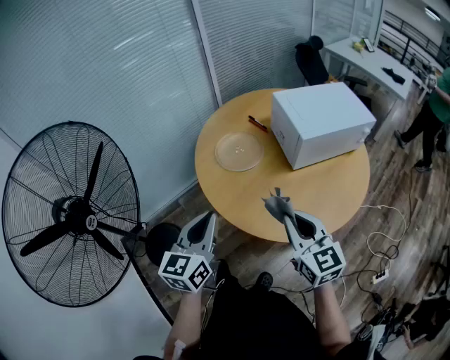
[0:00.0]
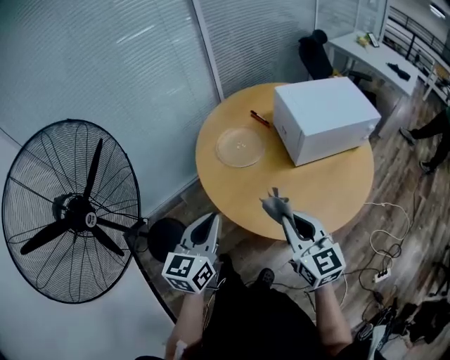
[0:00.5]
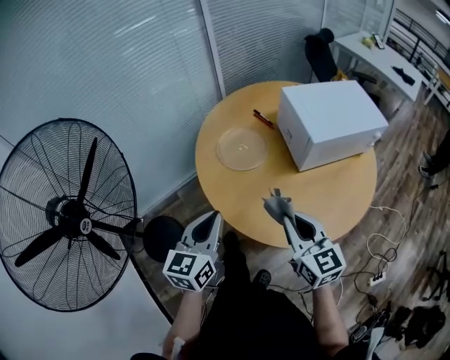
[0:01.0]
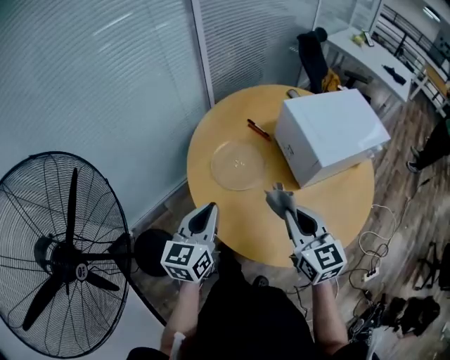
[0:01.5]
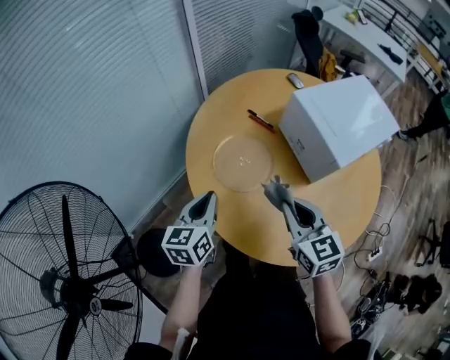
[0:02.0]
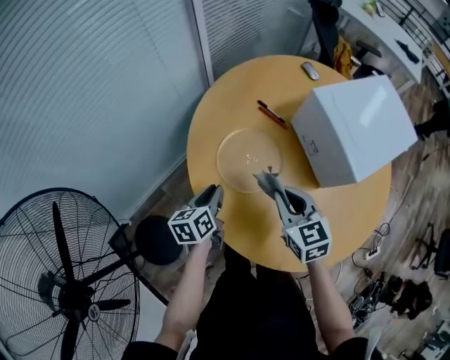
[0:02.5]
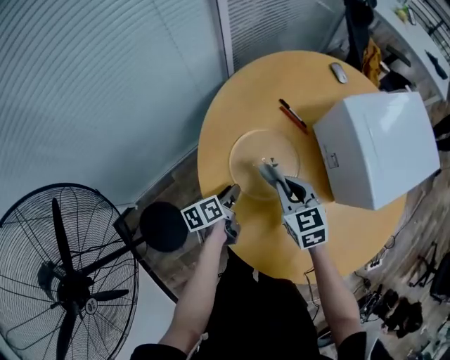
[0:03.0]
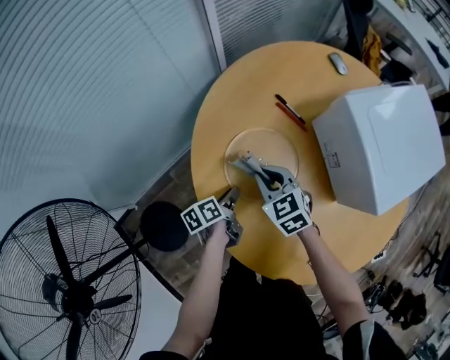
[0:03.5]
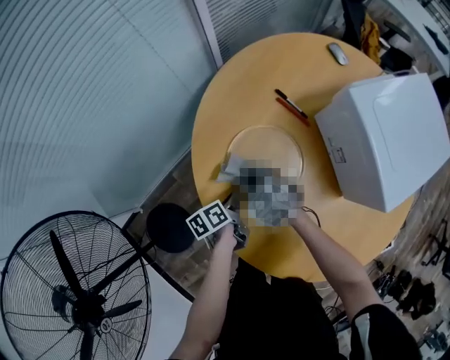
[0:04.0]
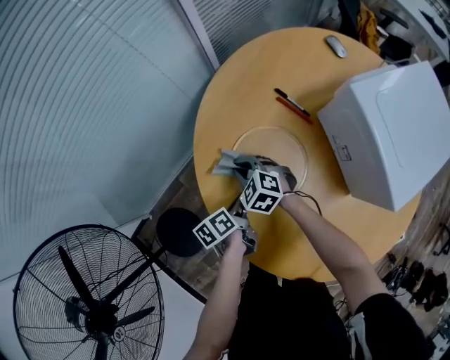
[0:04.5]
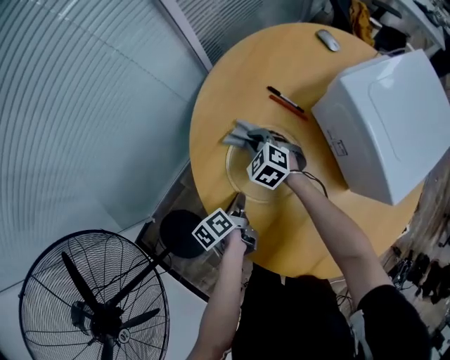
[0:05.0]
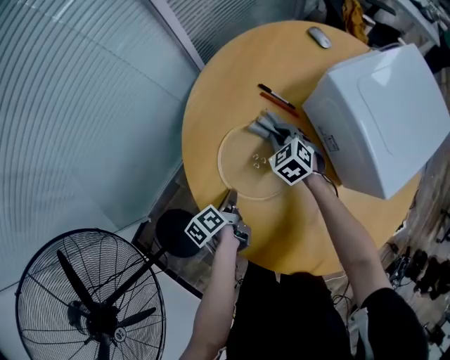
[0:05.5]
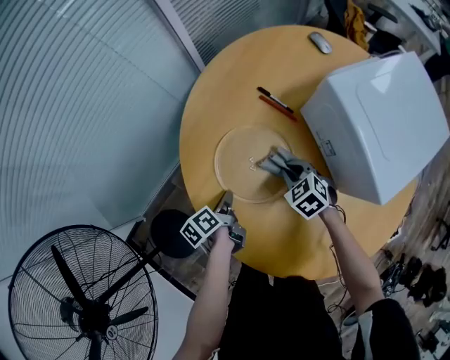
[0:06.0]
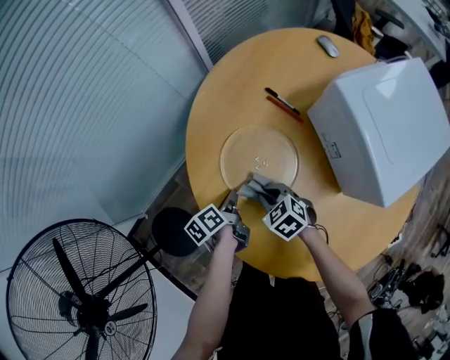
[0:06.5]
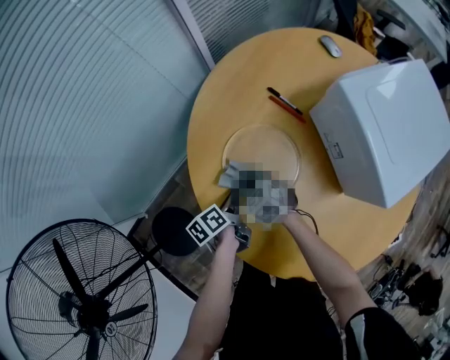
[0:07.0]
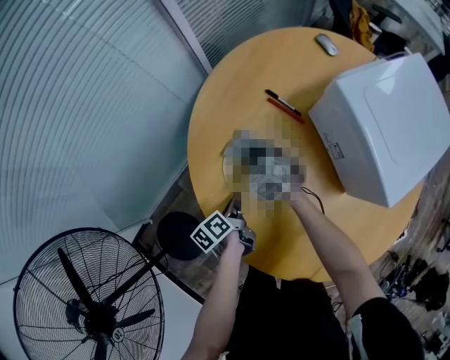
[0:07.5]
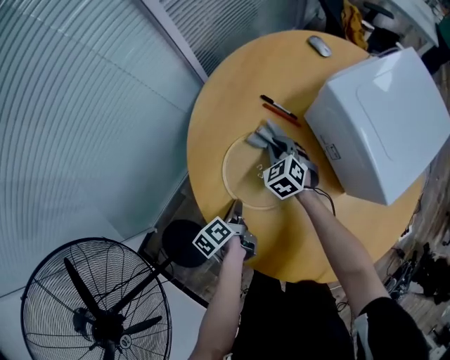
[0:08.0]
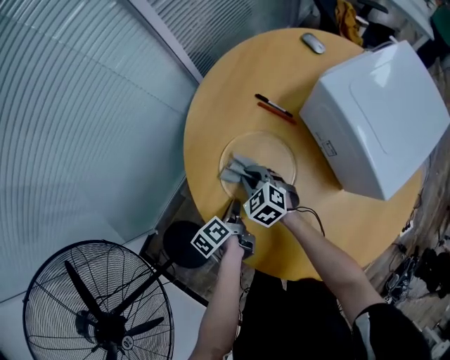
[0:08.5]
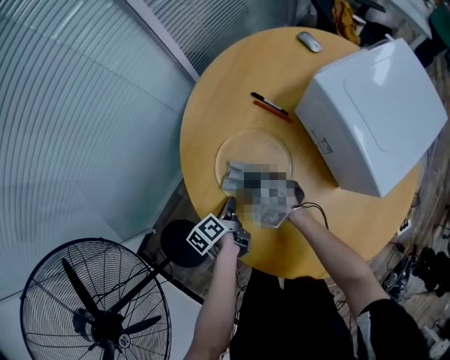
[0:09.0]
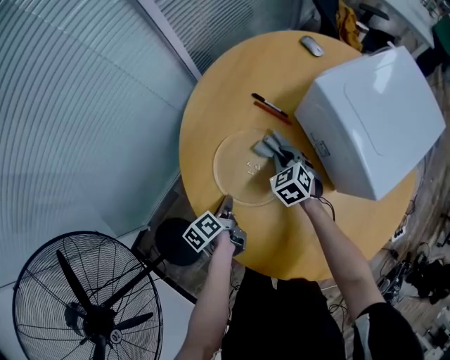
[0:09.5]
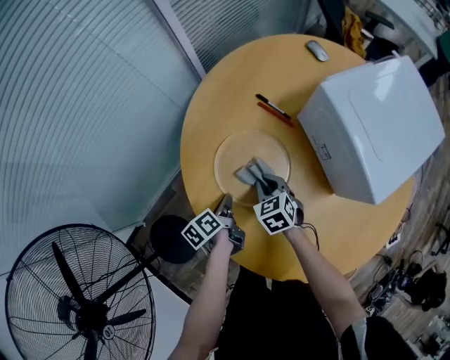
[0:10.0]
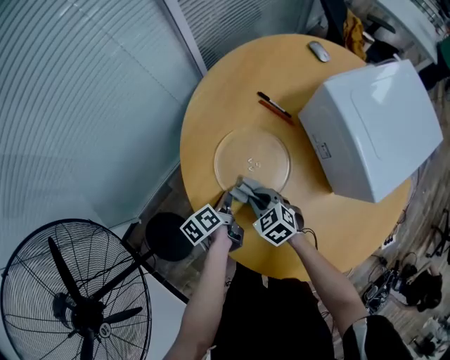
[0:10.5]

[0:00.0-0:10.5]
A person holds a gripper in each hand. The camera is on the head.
0:00.0 to 0:02.0: The right gripper moves forward, approximately 25 cm; the left gripper is displaced forward and downward by approximately 30 cm.
0:02.0 to 0:04.0: The right gripper is displaced downward, forward and to the left by some 35 cm, and swivels about 50 degrees; the left gripper shifts roughly 25 cm downward, and rotates around the line of its fingers by about 50 degrees, counterclockwise from behind.
0:04.0 to 0:06.5: The right gripper travels to the right and backward by some 10 cm.
0:06.5 to 0:08.5: The right gripper goes about 10 cm forward.
0:08.5 to 0:10.5: The right gripper shifts about 10 cm backward, and reaches about 15 cm to the right, then returns.

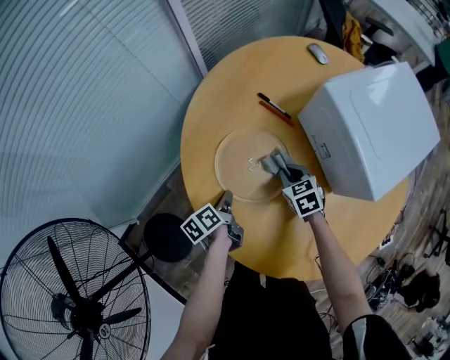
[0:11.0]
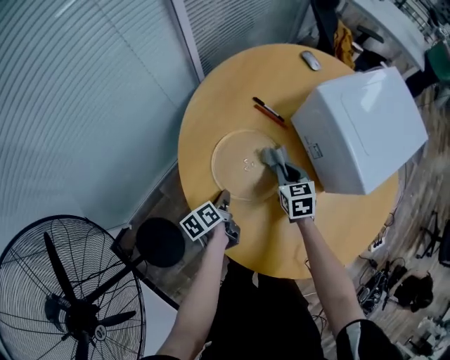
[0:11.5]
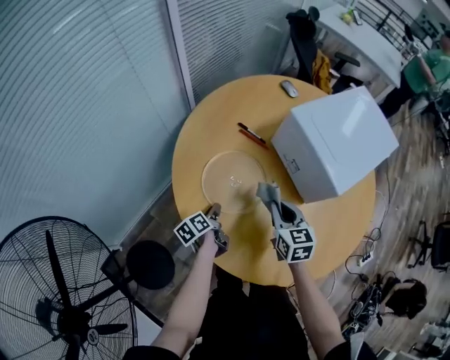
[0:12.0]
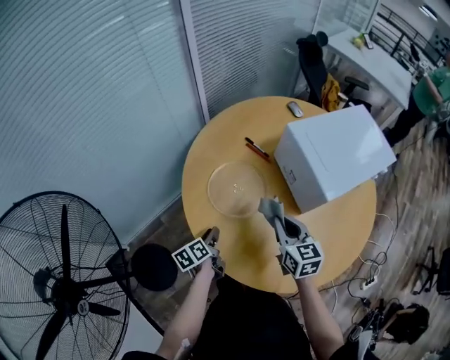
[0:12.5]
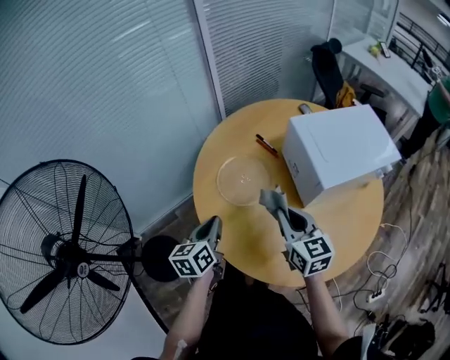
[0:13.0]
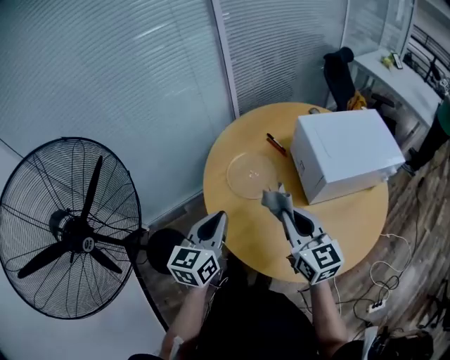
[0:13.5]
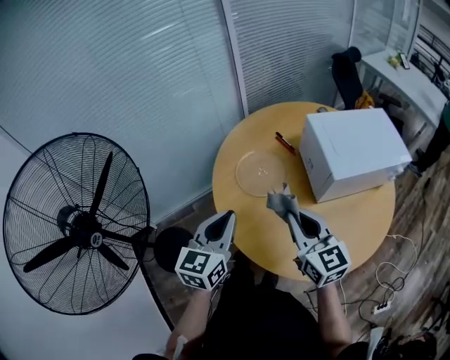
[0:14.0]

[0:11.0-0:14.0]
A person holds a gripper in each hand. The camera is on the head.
0:11.0 to 0:12.5: The left gripper moves backward and upward, roughly 10 cm. Meanwhile the right gripper heads upward and backward, covering roughly 25 cm, and changes its angle by some 30 degrees.
0:12.5 to 0:14.0: The left gripper travels upward and backward by approximately 30 cm, twists about 50 degrees clockwise, seen from behind, and closes up. Meanwhile the right gripper moves upward and backward, some 20 cm, and turns by some 30 degrees.

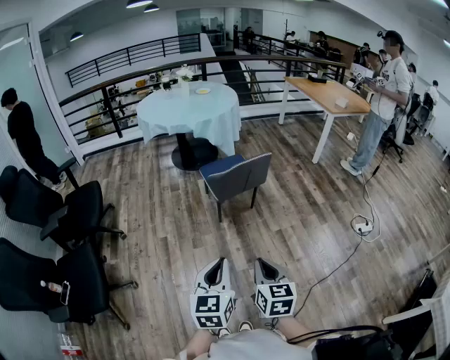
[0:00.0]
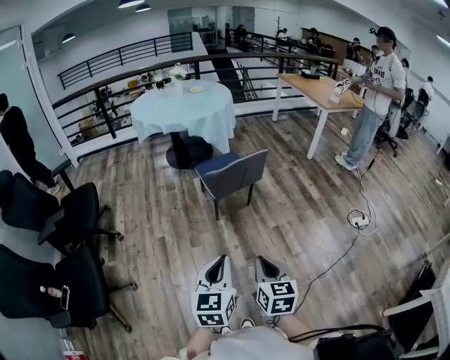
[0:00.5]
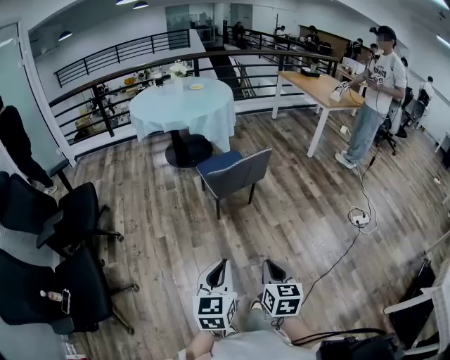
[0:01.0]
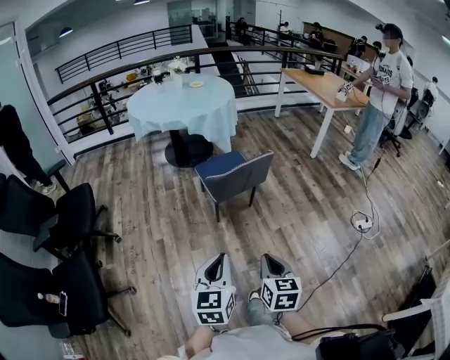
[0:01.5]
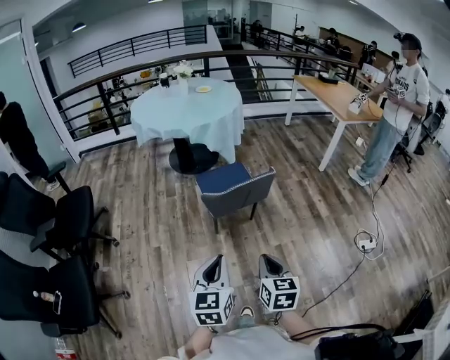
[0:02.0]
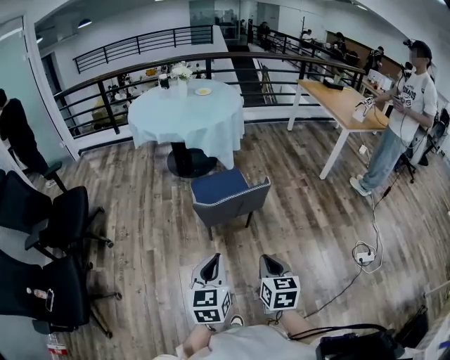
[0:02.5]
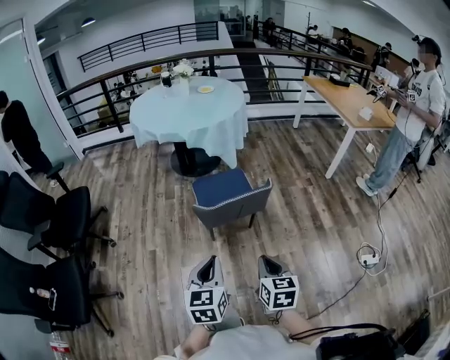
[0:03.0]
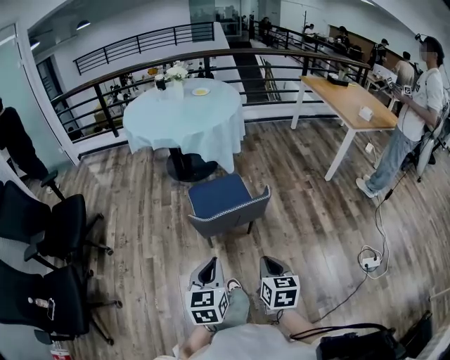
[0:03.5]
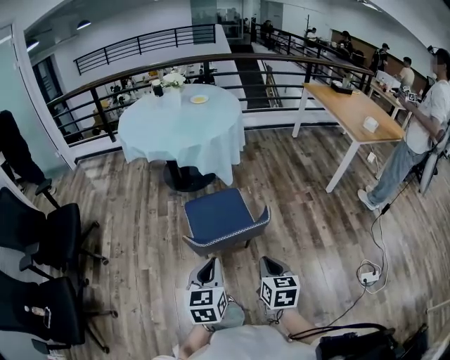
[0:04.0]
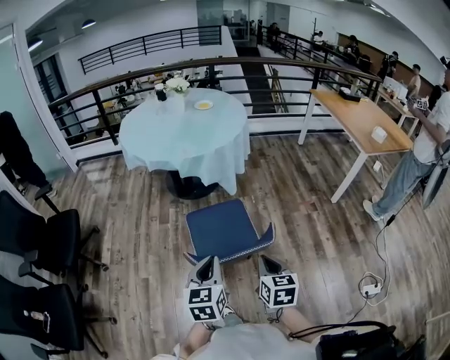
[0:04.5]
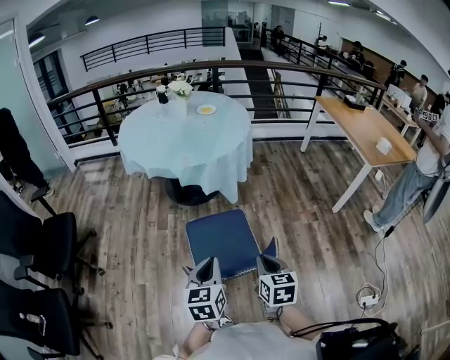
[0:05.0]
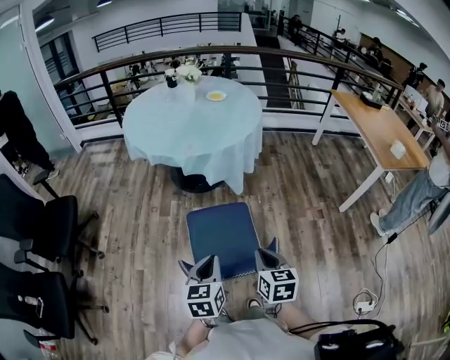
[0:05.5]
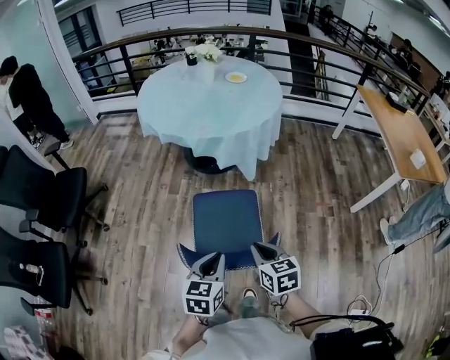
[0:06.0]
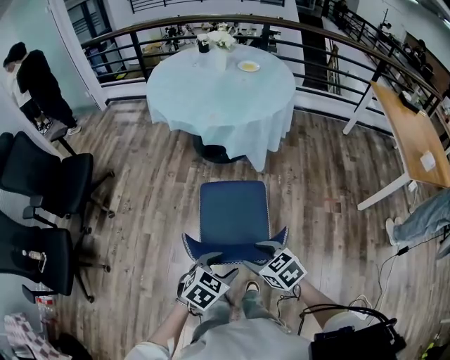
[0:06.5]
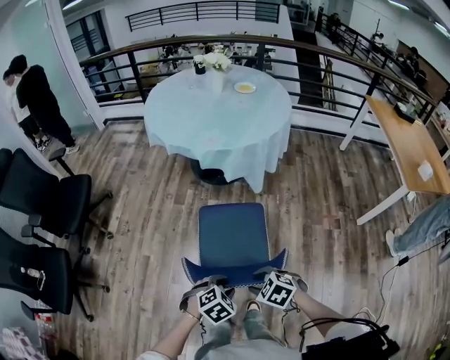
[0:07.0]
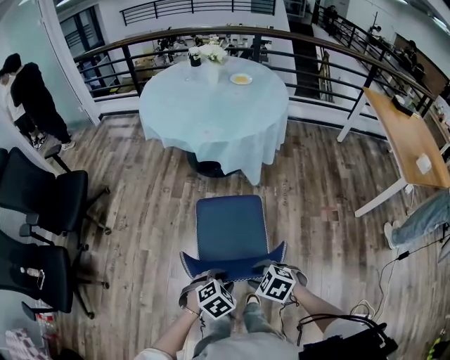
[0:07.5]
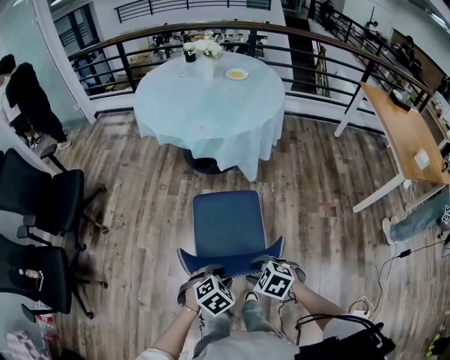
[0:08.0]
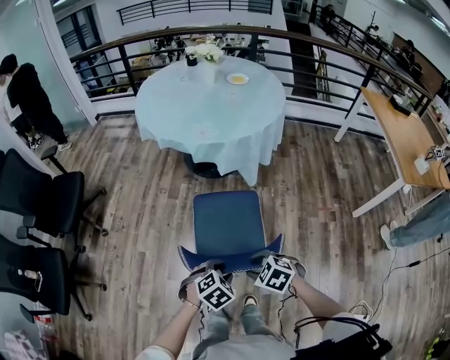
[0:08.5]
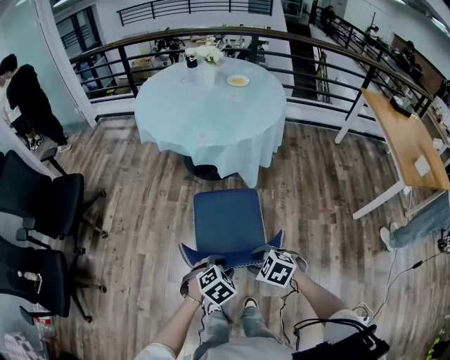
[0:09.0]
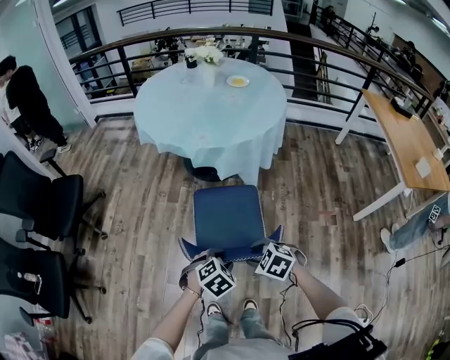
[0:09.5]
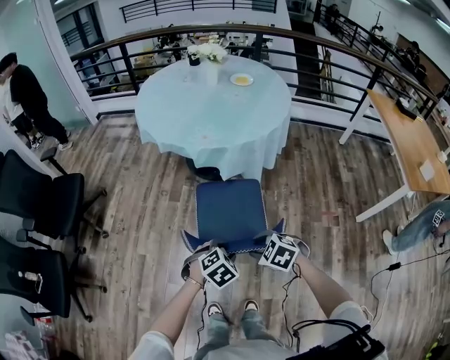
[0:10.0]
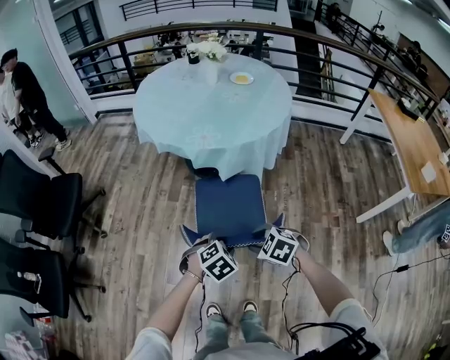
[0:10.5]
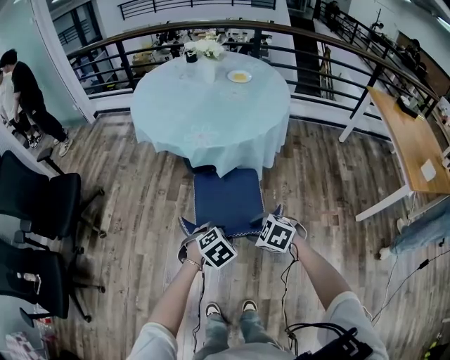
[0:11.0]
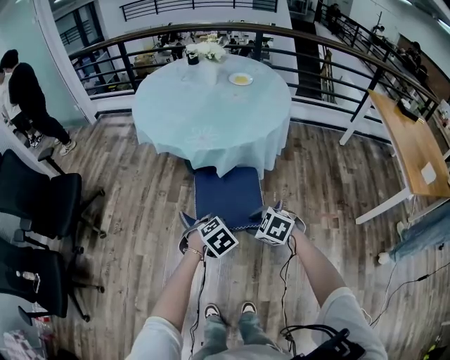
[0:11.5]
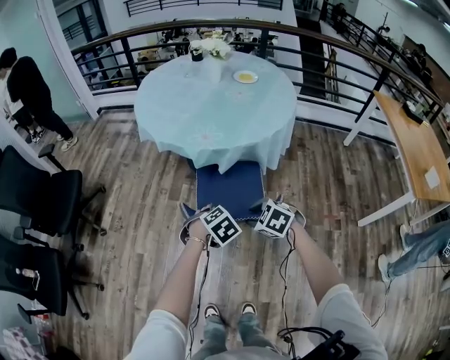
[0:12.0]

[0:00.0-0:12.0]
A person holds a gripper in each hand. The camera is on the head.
0:00.0 to 0:02.0: Both grippers move forward, some 20 cm.
0:02.0 to 0:04.0: The left gripper heads forward, covering approximately 25 cm. The right gripper travels forward and to the right by some 30 cm.
0:04.0 to 0:06.0: The grippers both shift forward by roughly 20 cm. The right gripper swivels roughly 30 degrees.
0:06.0 to 0:08.0: Both grippers move downward, about 10 cm. The right gripper rotates roughly 60 degrees, and opens. The left gripper tilts its fingers some 30 degrees downward, and opens.
0:08.0 to 0:10.0: Both grippers move forward, some 15 cm.
0:10.0 to 0:12.0: The two grippers go about 15 cm forward.

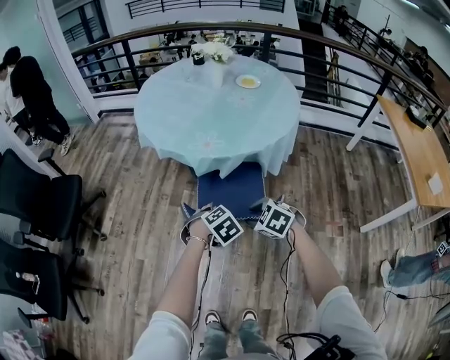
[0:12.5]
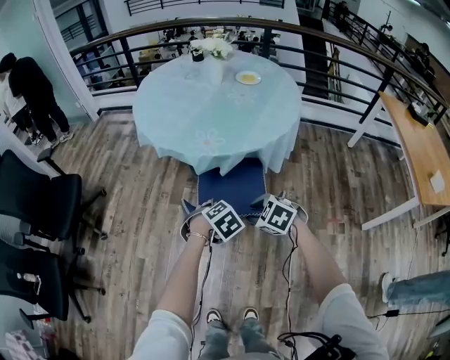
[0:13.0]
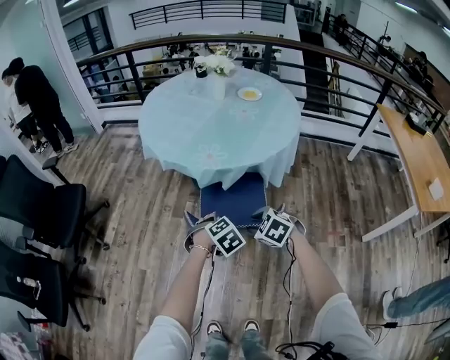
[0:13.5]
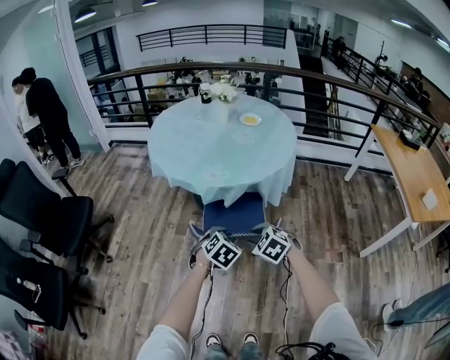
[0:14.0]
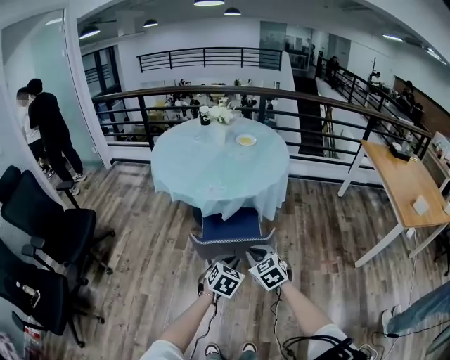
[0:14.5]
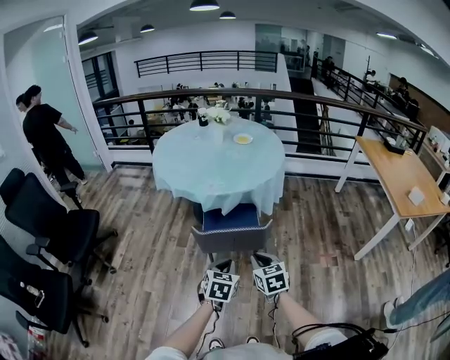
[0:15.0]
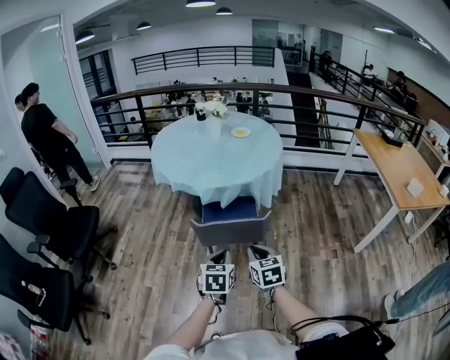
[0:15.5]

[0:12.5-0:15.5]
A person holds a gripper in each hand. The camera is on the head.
0:12.5 to 0:14.0: The left gripper heads upward, covering some 5 cm.
0:14.0 to 0:15.5: The right gripper moves backward and upward, about 15 cm, swivels roughly 50 degrees, and closes its fingers; the left gripper goes some 15 cm backward, swivels approximately 40 degrees, and closes up.
